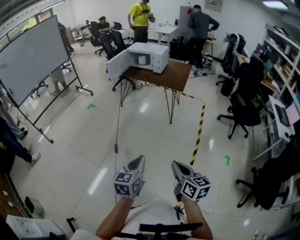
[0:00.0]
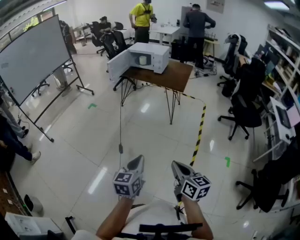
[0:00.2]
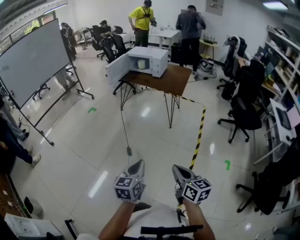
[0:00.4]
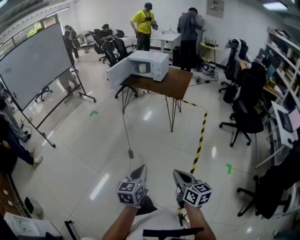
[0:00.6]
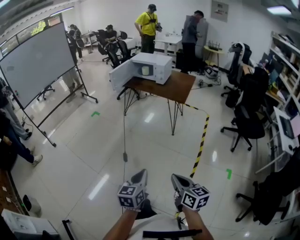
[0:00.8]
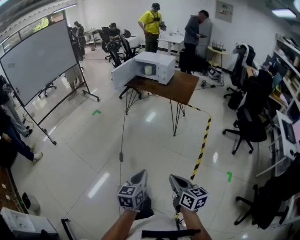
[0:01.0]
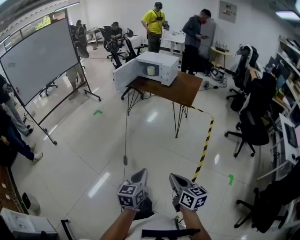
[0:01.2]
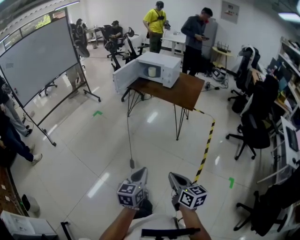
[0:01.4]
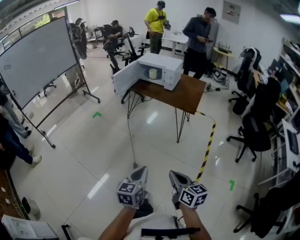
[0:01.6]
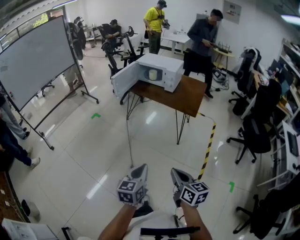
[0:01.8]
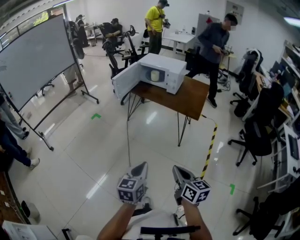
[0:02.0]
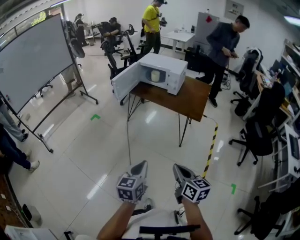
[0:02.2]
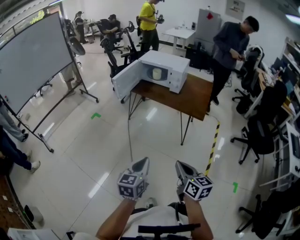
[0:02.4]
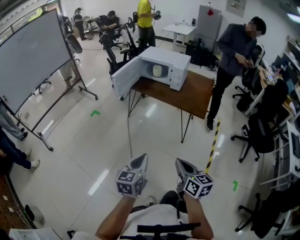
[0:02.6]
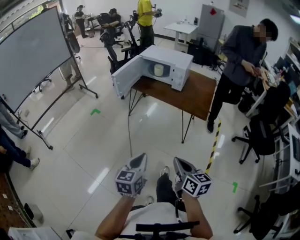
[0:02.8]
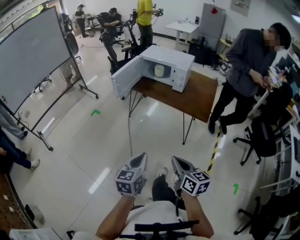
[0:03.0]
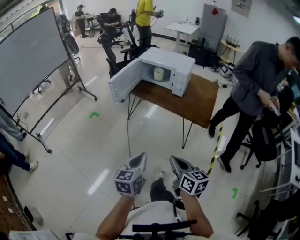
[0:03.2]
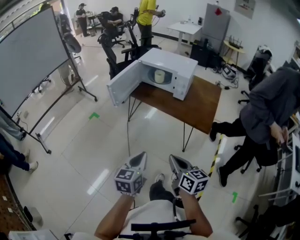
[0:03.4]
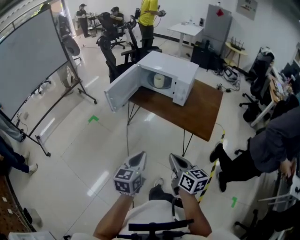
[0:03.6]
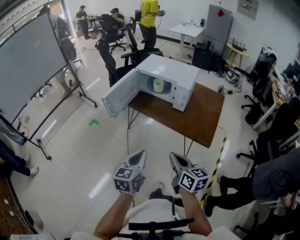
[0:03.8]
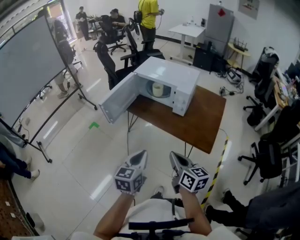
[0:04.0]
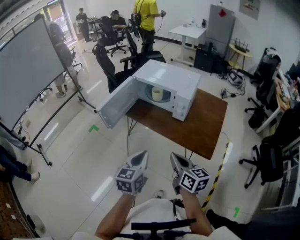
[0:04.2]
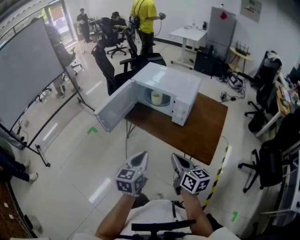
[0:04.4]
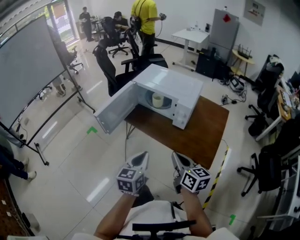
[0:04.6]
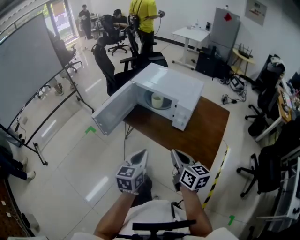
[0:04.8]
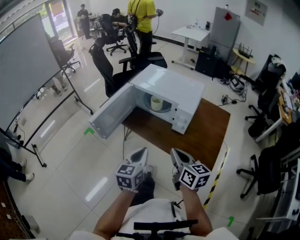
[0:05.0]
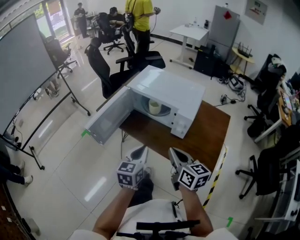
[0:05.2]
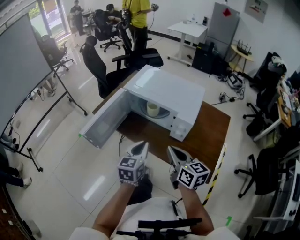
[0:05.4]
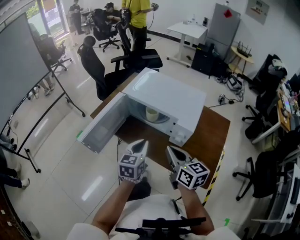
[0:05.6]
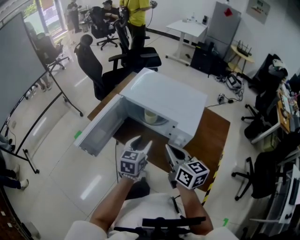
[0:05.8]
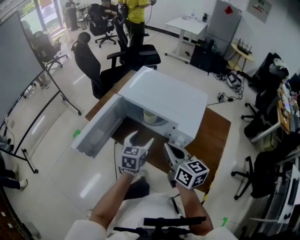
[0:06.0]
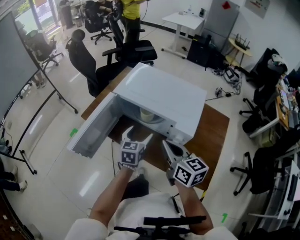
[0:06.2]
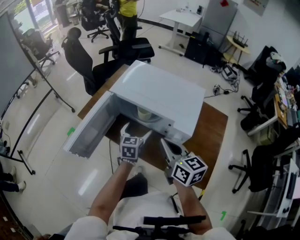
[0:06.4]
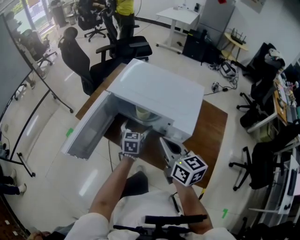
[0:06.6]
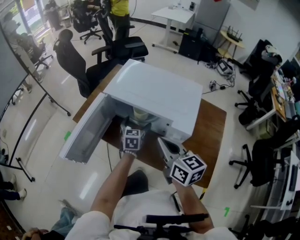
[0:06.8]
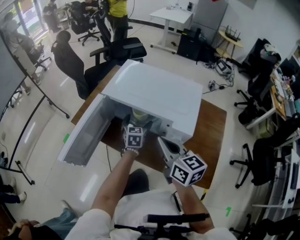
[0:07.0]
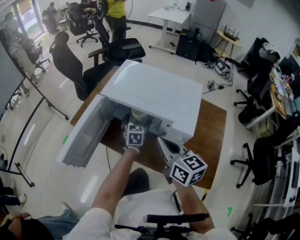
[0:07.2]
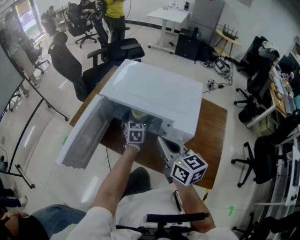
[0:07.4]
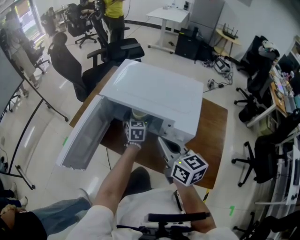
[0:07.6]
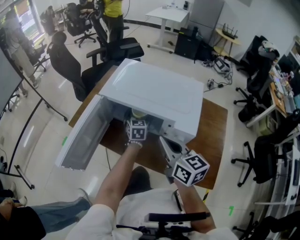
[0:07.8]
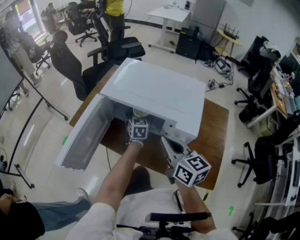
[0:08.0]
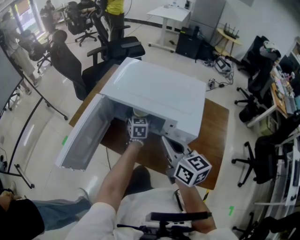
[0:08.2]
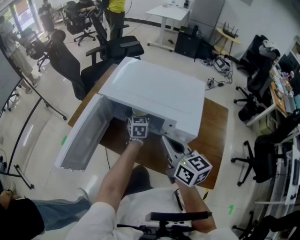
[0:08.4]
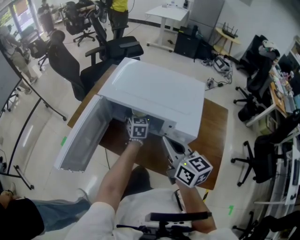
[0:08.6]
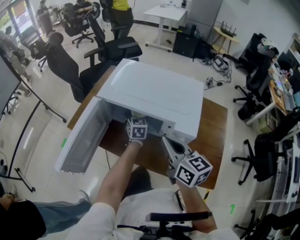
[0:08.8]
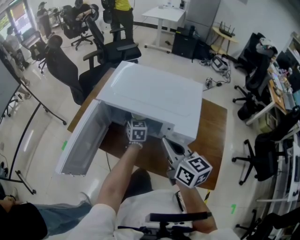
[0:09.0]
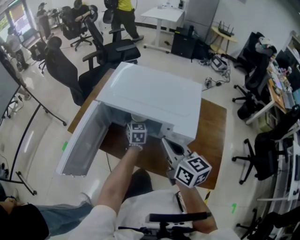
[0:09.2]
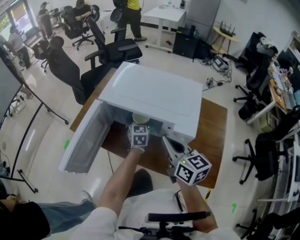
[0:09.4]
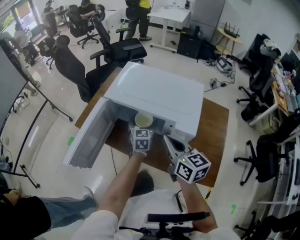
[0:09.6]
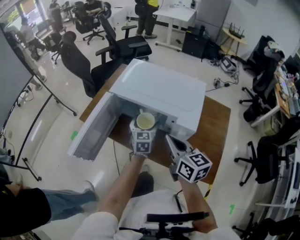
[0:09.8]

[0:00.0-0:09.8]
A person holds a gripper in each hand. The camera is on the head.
0:00.0 to 0:01.4: The grippers both shift forward by roughly 10 cm.
0:01.4 to 0:02.8: Both grippers travel together forward, roughly 25 cm.
0:02.8 to 0:04.2: The grippers both shift forward by roughly 30 cm.
0:04.2 to 0:05.6: Both grippers move forward, roughly 25 cm.
0:05.6 to 0:07.0: The left gripper travels forward and downward by some 25 cm, and opens up. Meanwhile the right gripper is displaced forward by about 10 cm.
0:07.0 to 0:08.4: The left gripper shifts some 5 cm forward.
0:08.4 to 0:09.8: The left gripper heads backward and upward, covering about 10 cm.

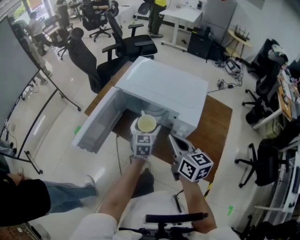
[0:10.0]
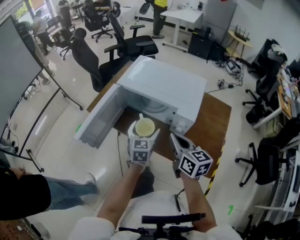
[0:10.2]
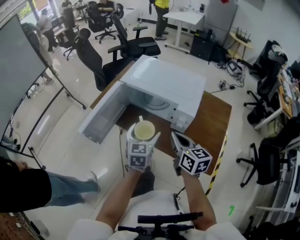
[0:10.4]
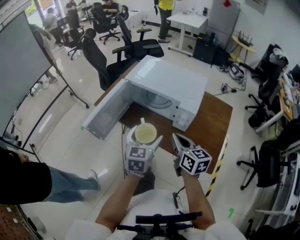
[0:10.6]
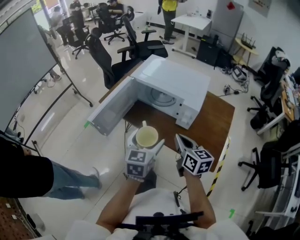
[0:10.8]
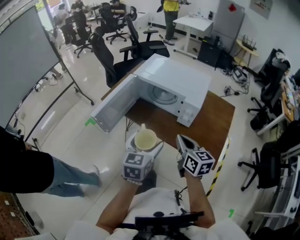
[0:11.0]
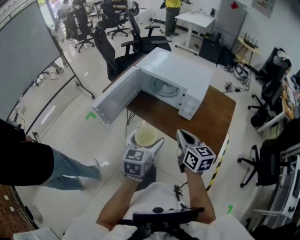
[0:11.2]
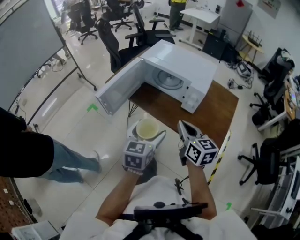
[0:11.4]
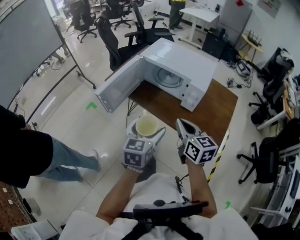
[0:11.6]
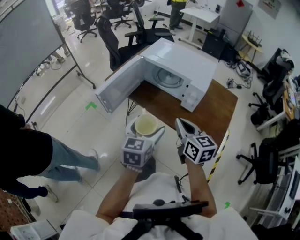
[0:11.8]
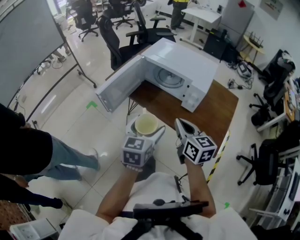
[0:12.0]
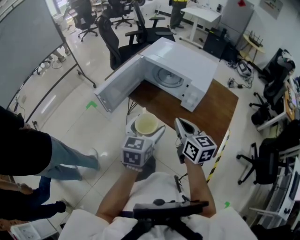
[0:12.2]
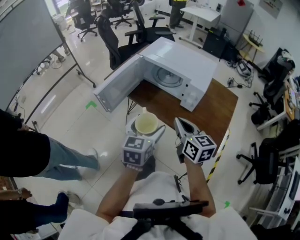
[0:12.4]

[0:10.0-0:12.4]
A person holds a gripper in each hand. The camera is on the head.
0:10.0 to 0:11.2: The left gripper shifts about 30 cm backward and upward. The right gripper heads backward, covering some 15 cm.
0:11.2 to 0:12.4: The grippers stay close to where they were, moving slightly.

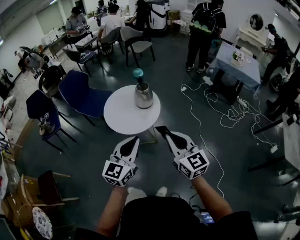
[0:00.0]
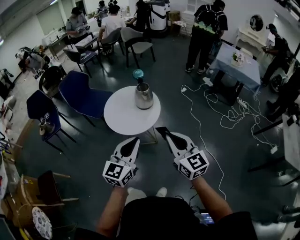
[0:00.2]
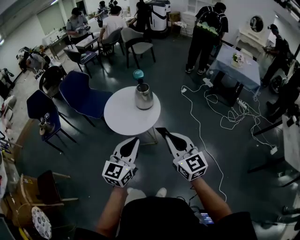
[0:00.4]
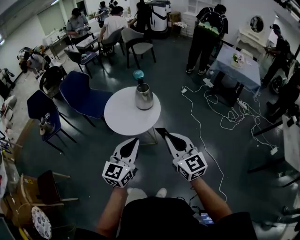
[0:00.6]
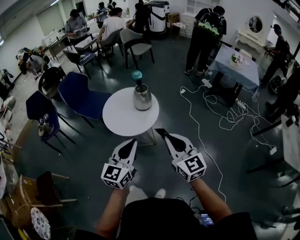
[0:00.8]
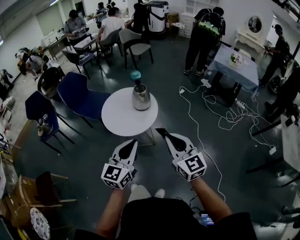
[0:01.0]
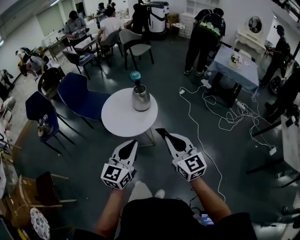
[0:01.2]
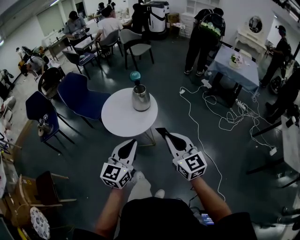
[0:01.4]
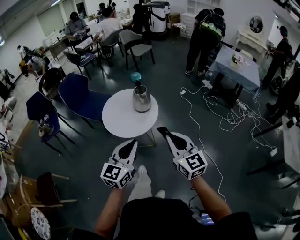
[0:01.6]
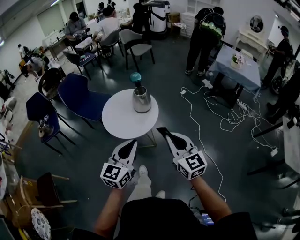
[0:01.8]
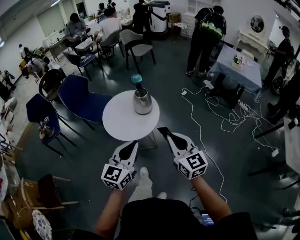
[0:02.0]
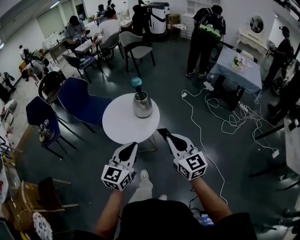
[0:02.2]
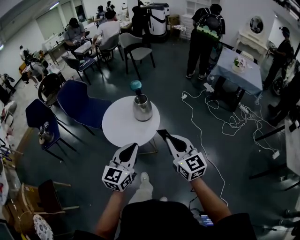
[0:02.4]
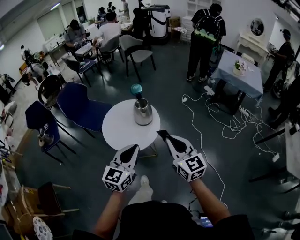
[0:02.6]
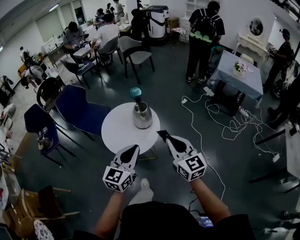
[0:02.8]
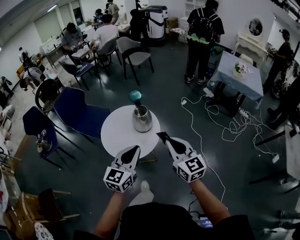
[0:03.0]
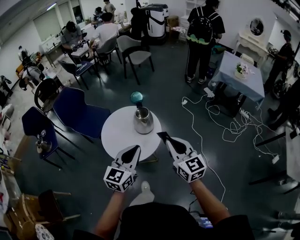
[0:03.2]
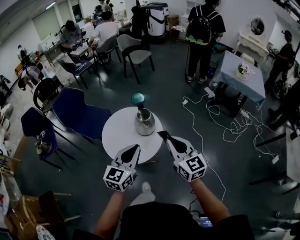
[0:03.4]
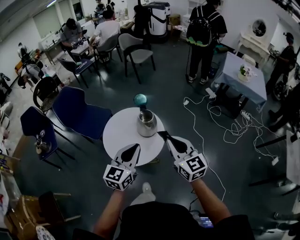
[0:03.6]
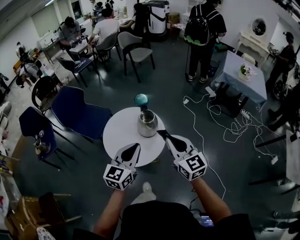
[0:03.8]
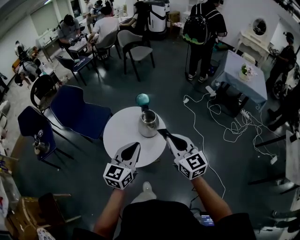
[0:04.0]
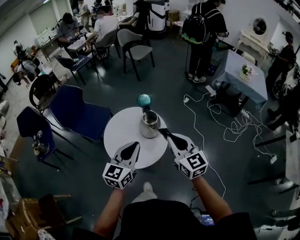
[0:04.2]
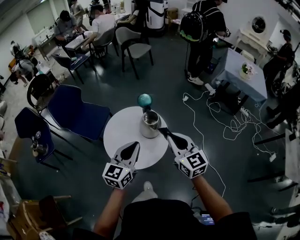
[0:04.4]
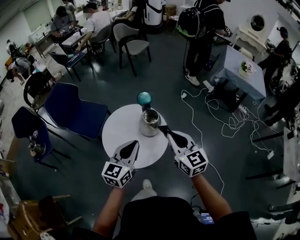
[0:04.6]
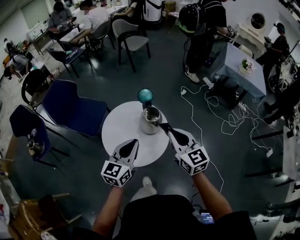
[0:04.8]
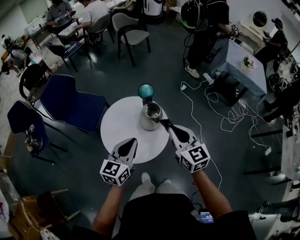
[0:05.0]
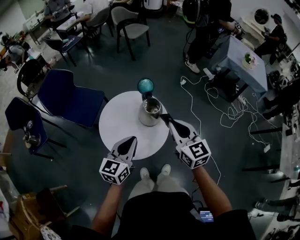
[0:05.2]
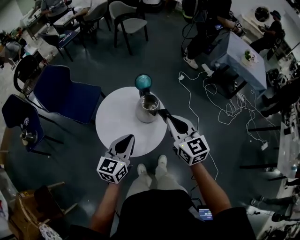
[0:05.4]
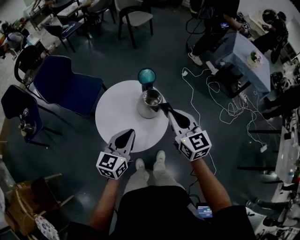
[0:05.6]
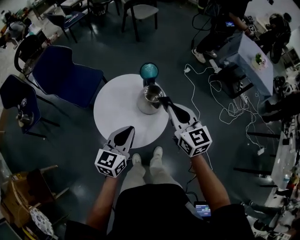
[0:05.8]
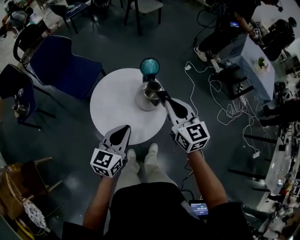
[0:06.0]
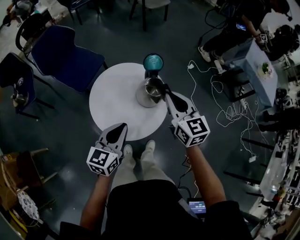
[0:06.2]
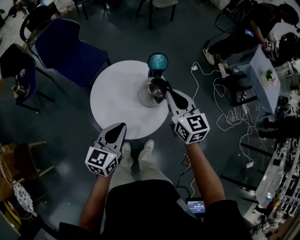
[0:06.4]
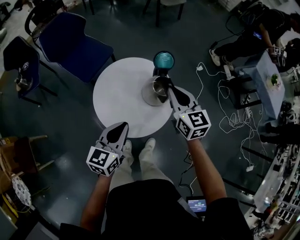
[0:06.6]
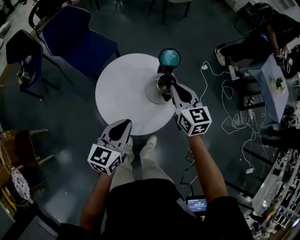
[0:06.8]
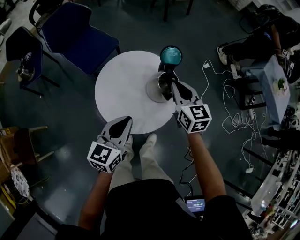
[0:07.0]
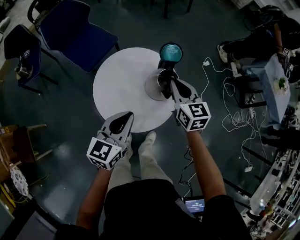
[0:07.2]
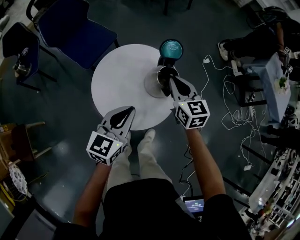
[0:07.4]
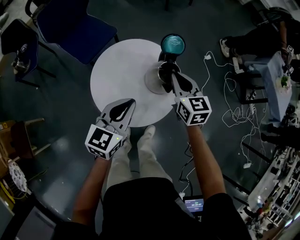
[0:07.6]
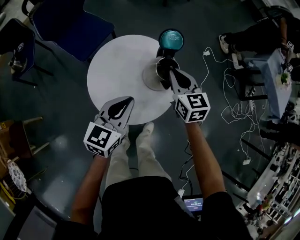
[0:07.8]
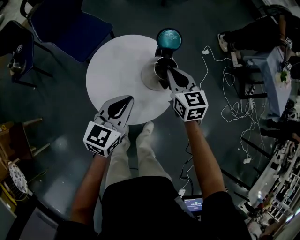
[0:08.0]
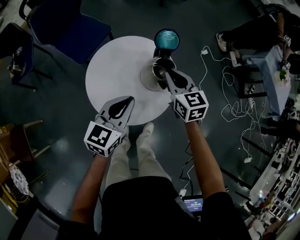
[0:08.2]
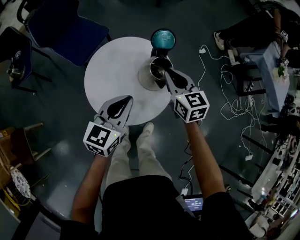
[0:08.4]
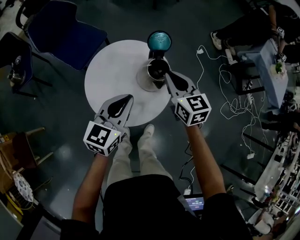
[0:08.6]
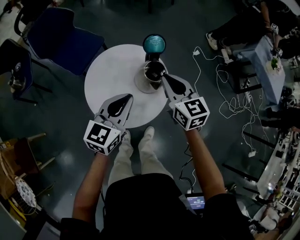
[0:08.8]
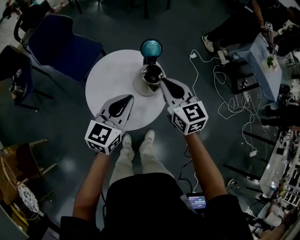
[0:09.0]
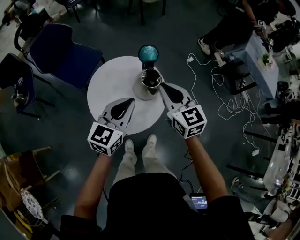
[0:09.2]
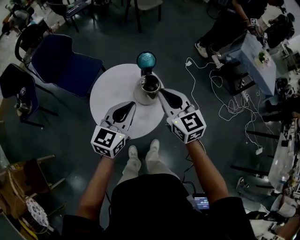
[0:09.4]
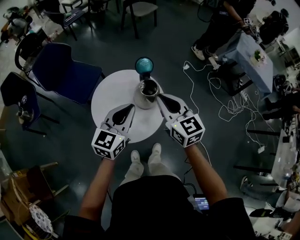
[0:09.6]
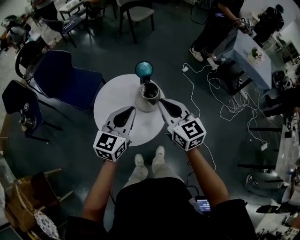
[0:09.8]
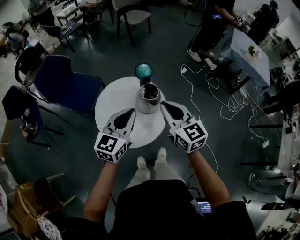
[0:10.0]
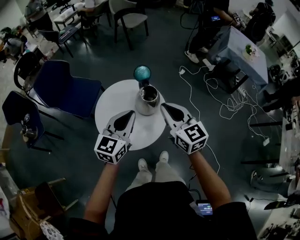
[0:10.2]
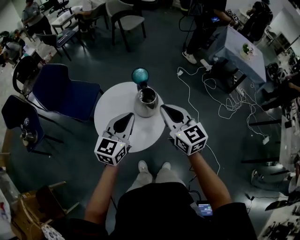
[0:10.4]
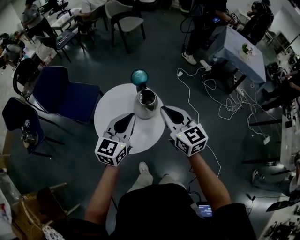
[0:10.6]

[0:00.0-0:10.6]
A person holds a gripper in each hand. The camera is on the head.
0:00.0 to 0:01.6: There are only small adjustments of the grippers.
0:01.6 to 0:03.0: Both grippers travel together forward, approximately 15 cm.
0:03.0 to 0:04.6: Both grippers travel together forward and to the left, approximately 20 cm.
0:04.6 to 0:06.0: The left gripper travels downward by approximately 10 cm. Meanwhile the right gripper travels forward and downward by approximately 15 cm.
0:06.0 to 0:07.6: The right gripper goes about 15 cm downward and forward. Meanwhile the left gripper is displaced downward by about 5 cm.
0:07.6 to 0:09.0: The right gripper shifts approximately 10 cm upward and backward, while the left gripper heads upward, covering roughly 5 cm.
0:09.0 to 0:10.6: The right gripper goes about 15 cm backward and upward. Meanwhile the left gripper shifts some 5 cm upward.

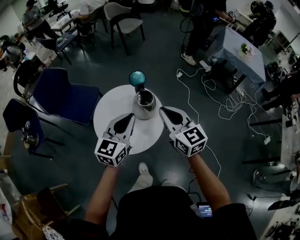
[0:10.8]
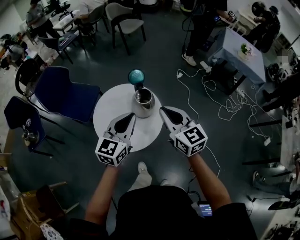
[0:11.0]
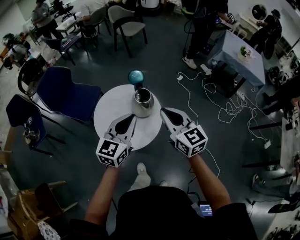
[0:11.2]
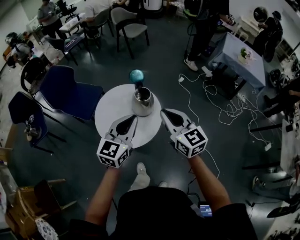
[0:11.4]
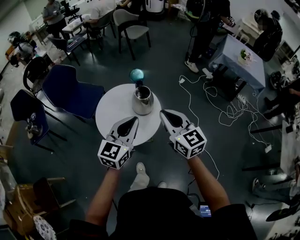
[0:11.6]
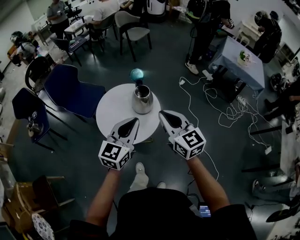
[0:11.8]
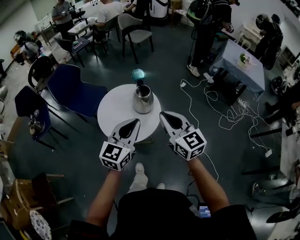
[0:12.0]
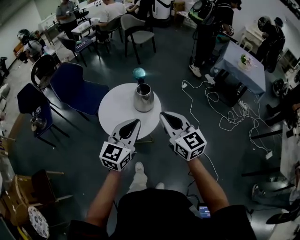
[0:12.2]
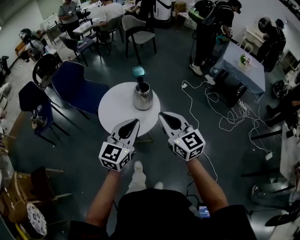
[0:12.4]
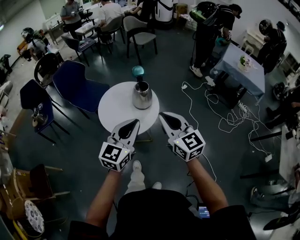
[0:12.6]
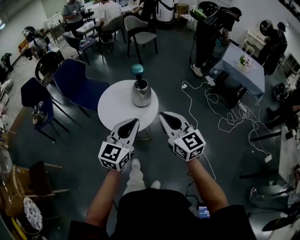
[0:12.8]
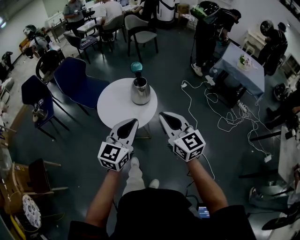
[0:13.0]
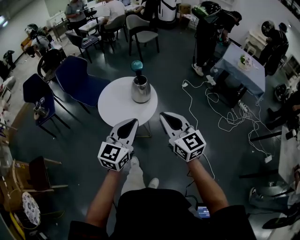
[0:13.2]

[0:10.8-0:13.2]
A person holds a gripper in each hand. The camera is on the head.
0:10.8 to 0:12.0: The two grippers go some 15 cm backward.
0:12.0 to 0:13.2: Both grippers travel together backward, about 15 cm.
